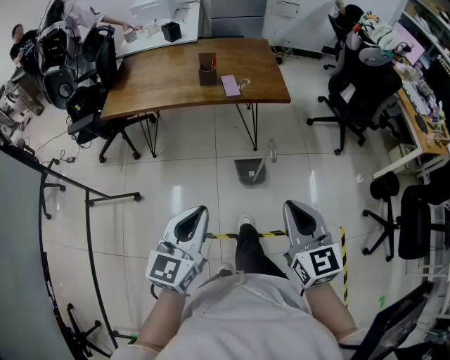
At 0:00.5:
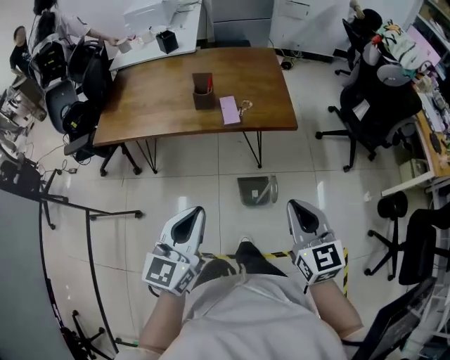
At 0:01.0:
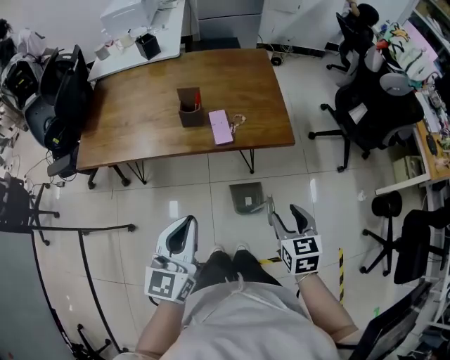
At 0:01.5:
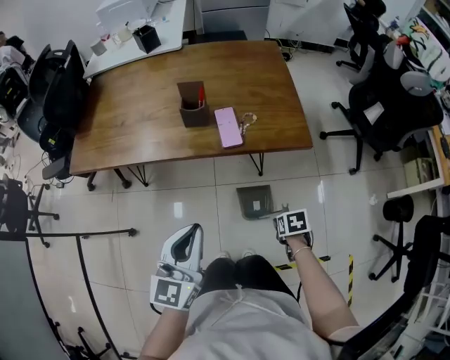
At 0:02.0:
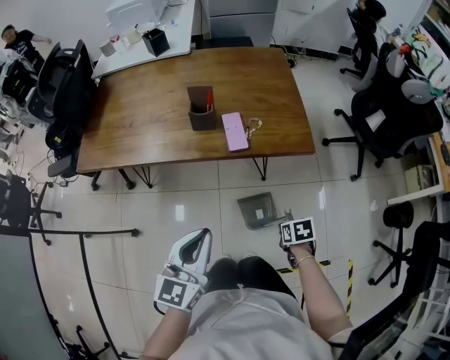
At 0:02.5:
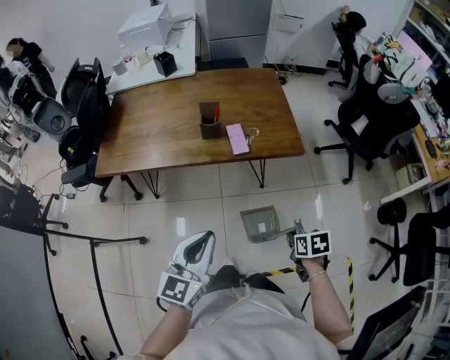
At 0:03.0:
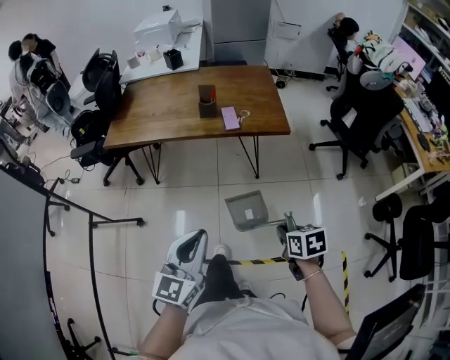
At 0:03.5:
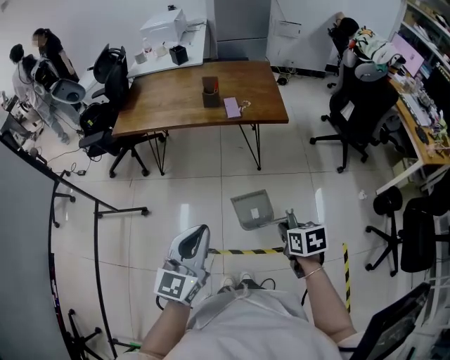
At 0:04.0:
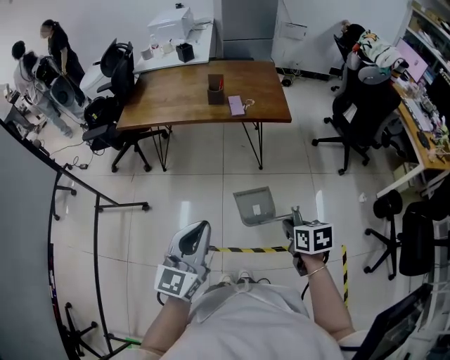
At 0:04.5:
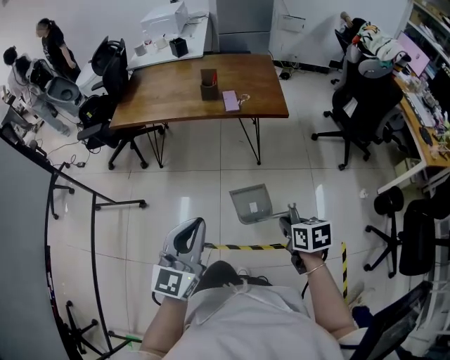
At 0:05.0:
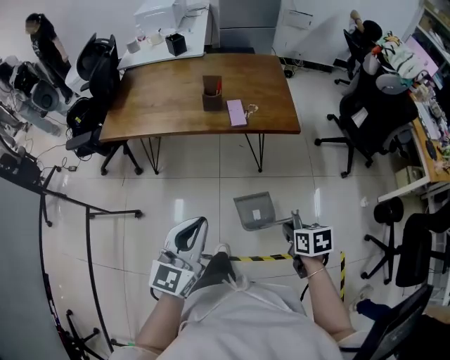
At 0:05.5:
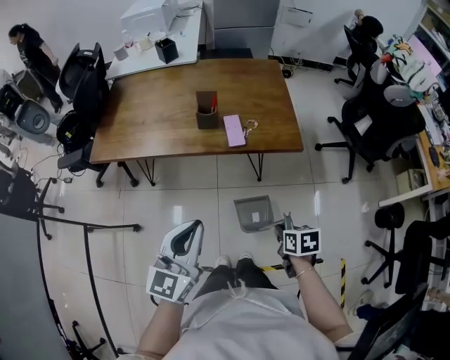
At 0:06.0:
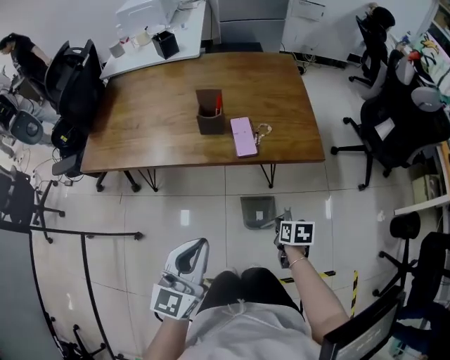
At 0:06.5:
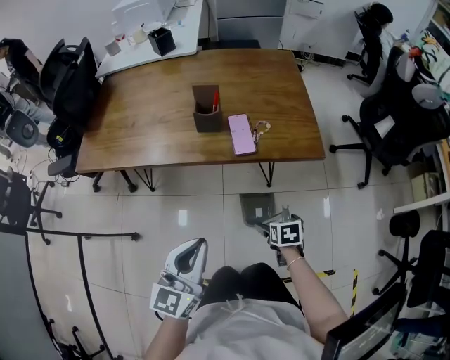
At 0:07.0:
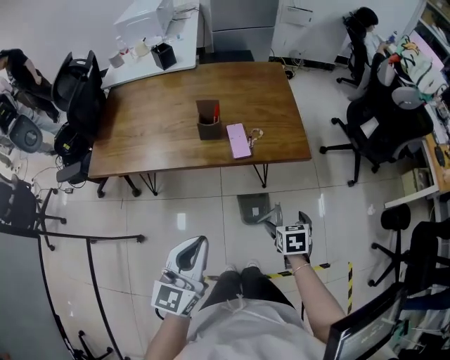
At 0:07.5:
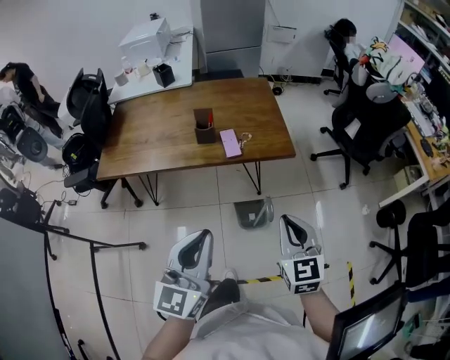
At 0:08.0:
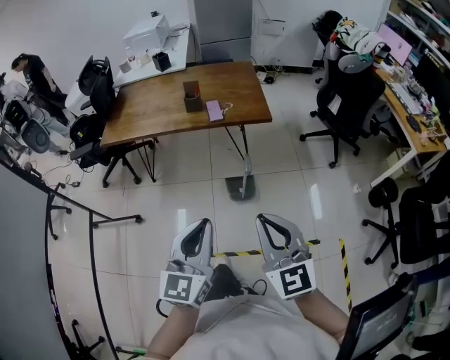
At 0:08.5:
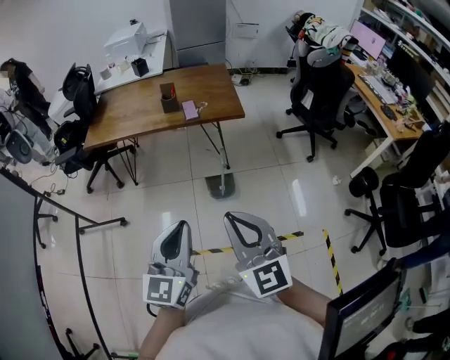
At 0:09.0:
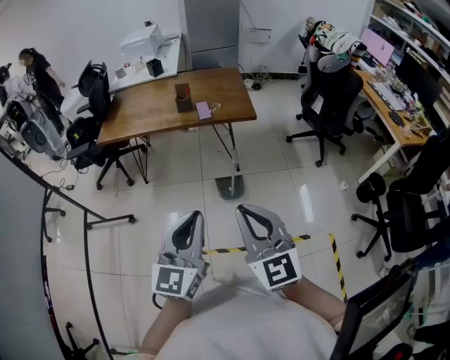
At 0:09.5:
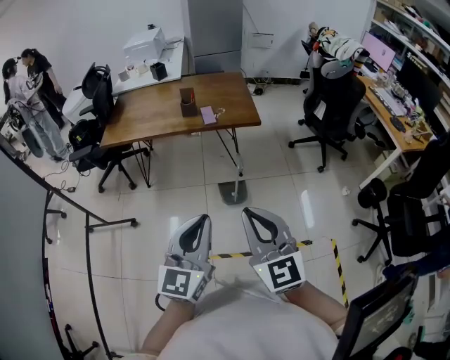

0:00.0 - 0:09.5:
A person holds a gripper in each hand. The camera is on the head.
0:00.0 - 0:02.0: The left gripper moves approximately 30 cm. The right gripper travels downward by some 35 cm, points its fingers roughly 60 degrees further downward, and opens, then closes again.
0:02.0 - 0:04.0: The left gripper moves backward, some 35 cm. Meanwhile the right gripper moves backward and upward, approximately 40 cm, and turns by roughly 20 degrees.
0:04.0 - 0:05.5: The grippers both shift forward by some 25 cm.
0:05.5 - 0:07.5: The left gripper shifts approximately 5 cm upward, while the right gripper moves upward, approximately 20 cm, points its fingers about 40 degrees further upward, and opens and closes again.
0:07.5 - 0:09.5: The two grippers go some 30 cm backward. The right gripper rotates some 20 degrees.

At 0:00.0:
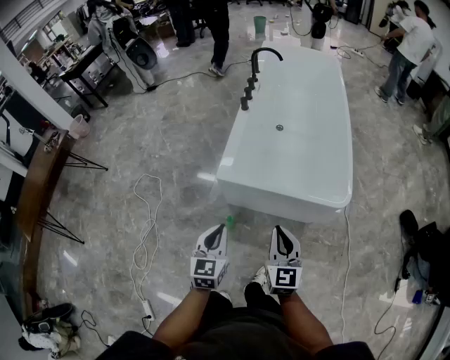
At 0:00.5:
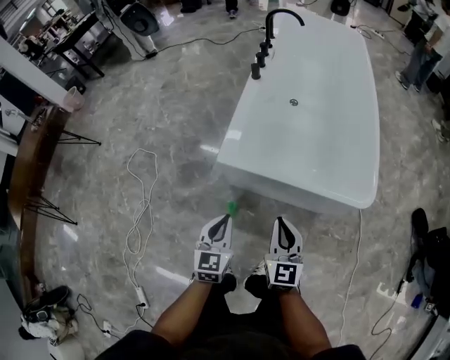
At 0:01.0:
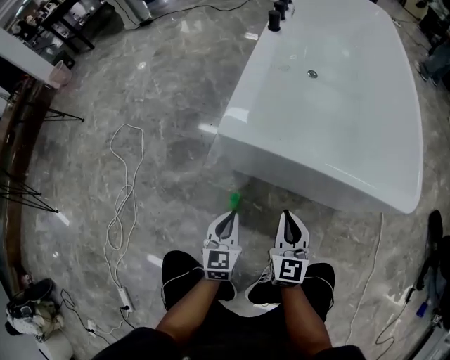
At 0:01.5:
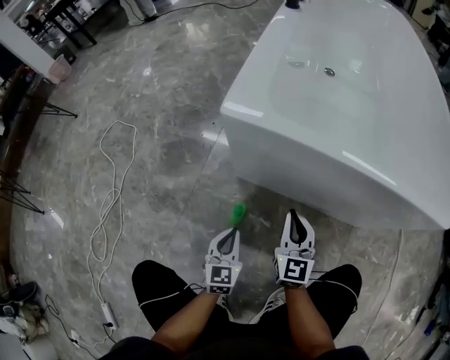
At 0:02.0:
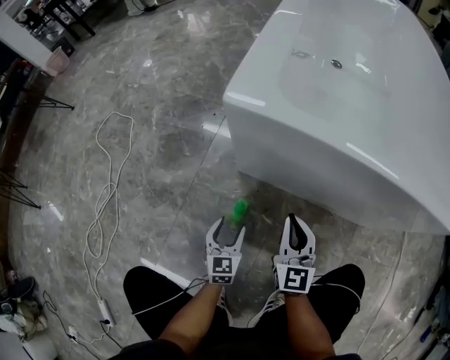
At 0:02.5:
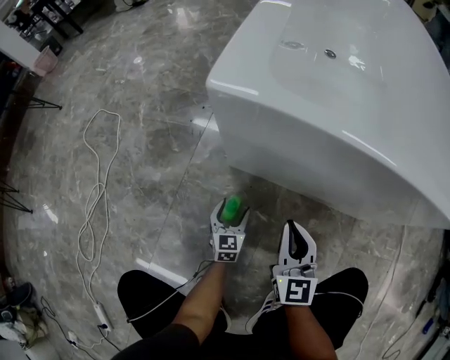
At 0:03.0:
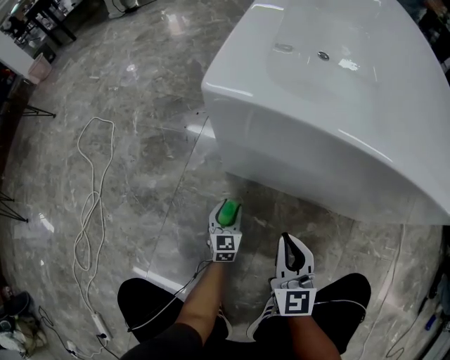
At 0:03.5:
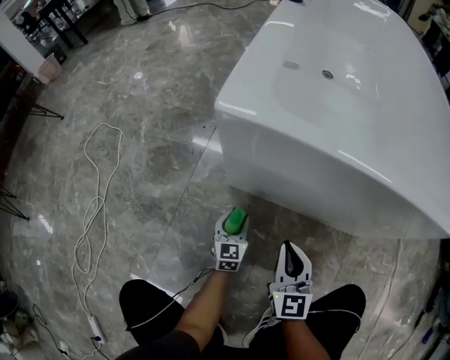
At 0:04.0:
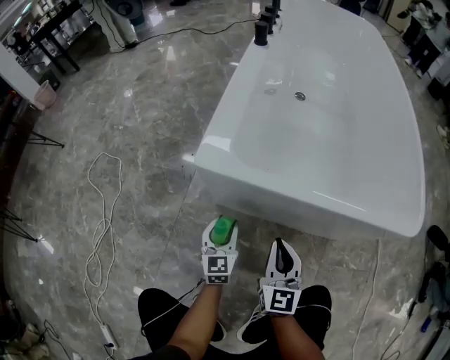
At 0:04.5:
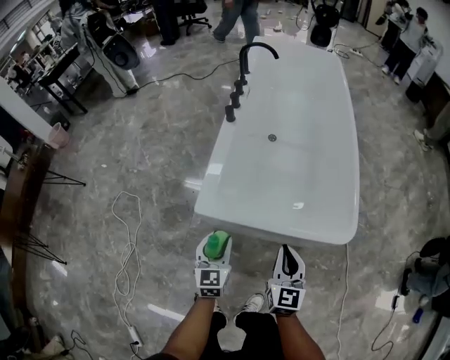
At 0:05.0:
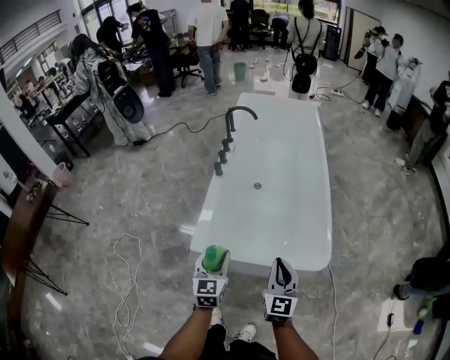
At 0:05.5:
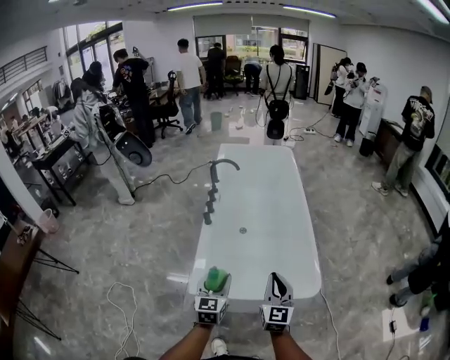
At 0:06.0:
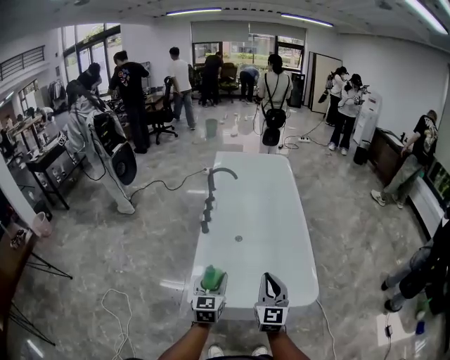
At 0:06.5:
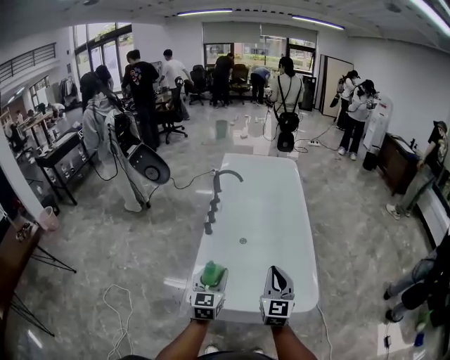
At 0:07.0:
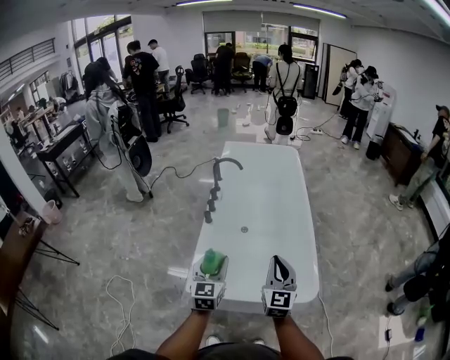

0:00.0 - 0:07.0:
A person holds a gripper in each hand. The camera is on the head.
0:00.0 - 0:02.0: Both grippers move downward, roughly 70 cm. The left gripper opens up.
0:02.0 - 0:03.5: The left gripper goes roughly 10 cm forward and downward.
0:03.5 - 0:05.0: Both grippers move upward, some 70 cm.
0:05.0 - 0:07.0: Both grippers move upward and forward, approximately 15 cm.

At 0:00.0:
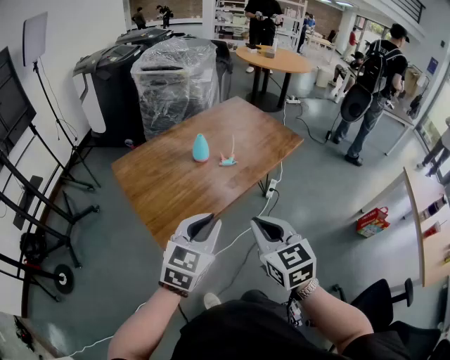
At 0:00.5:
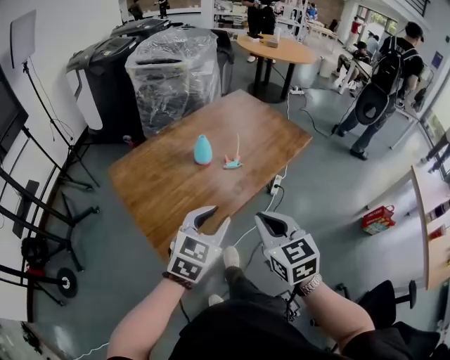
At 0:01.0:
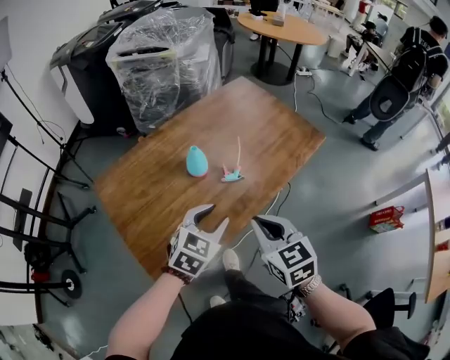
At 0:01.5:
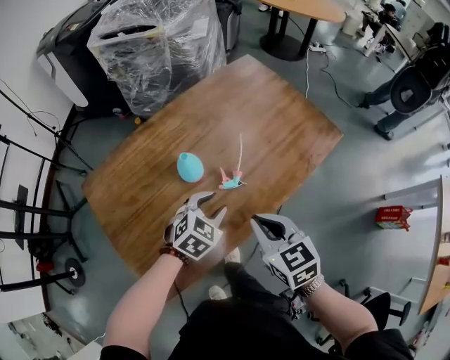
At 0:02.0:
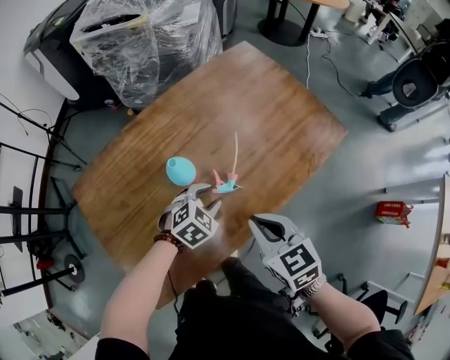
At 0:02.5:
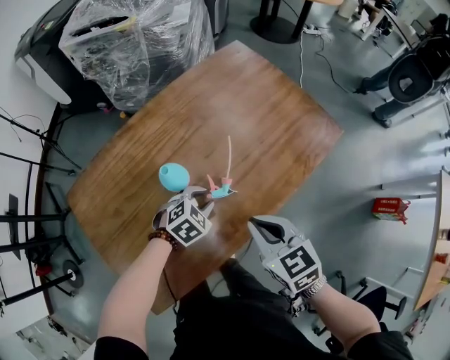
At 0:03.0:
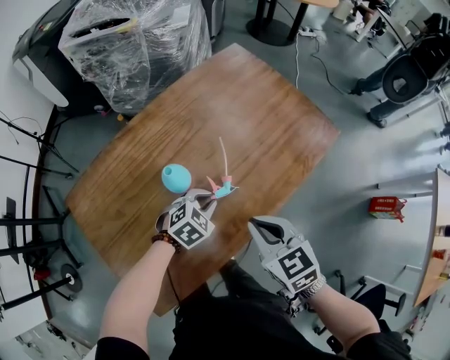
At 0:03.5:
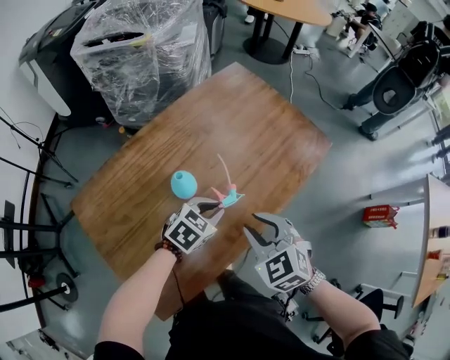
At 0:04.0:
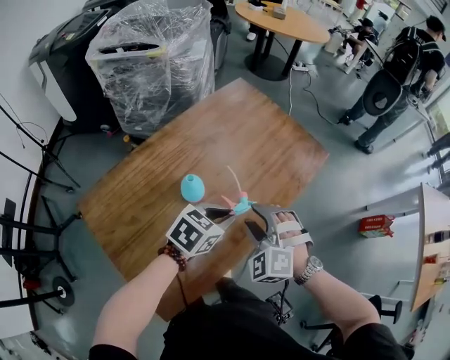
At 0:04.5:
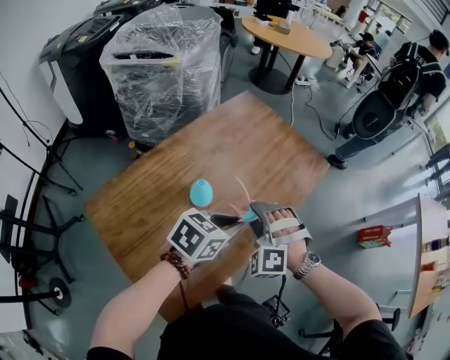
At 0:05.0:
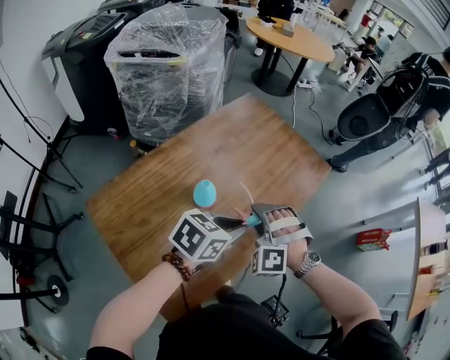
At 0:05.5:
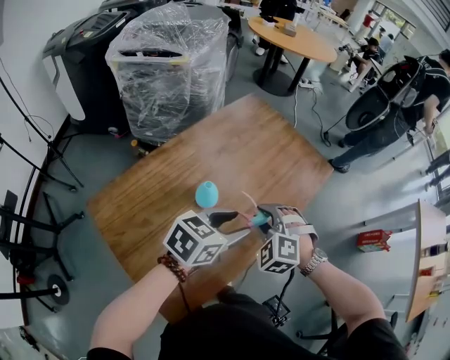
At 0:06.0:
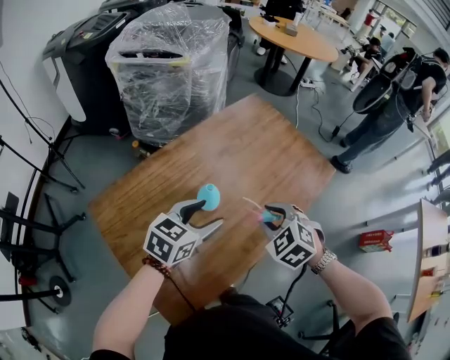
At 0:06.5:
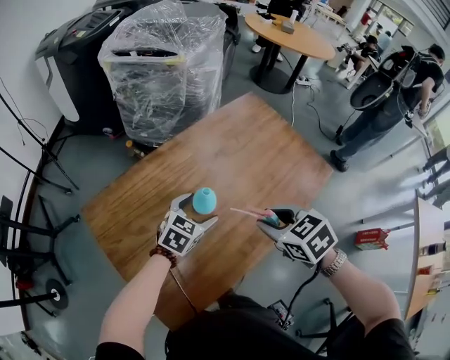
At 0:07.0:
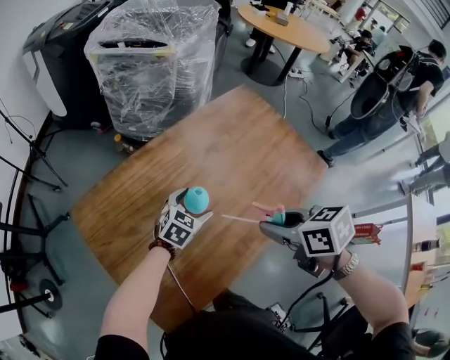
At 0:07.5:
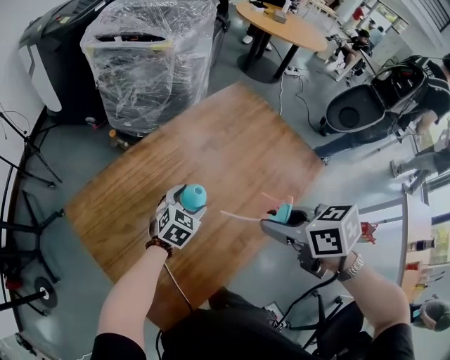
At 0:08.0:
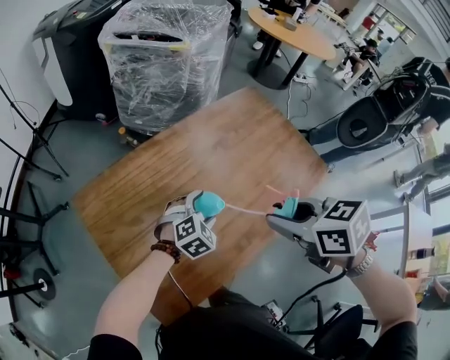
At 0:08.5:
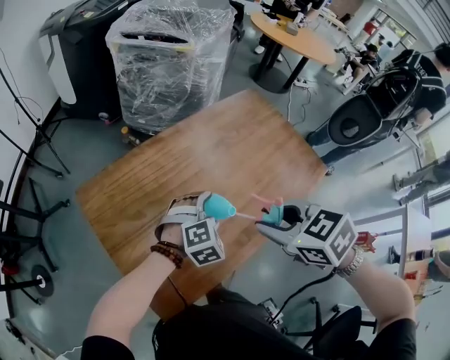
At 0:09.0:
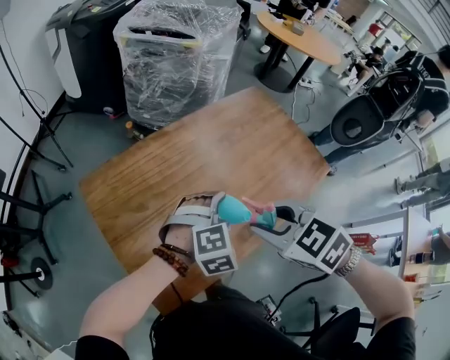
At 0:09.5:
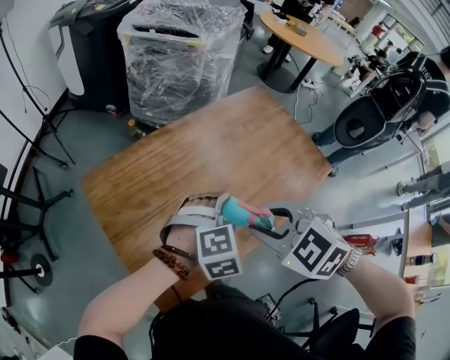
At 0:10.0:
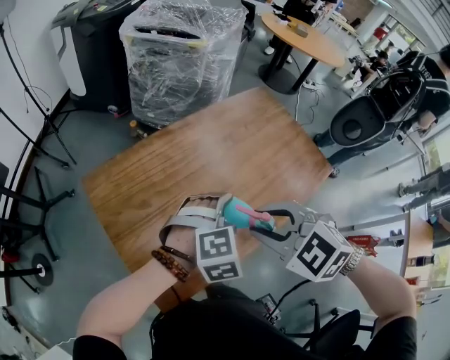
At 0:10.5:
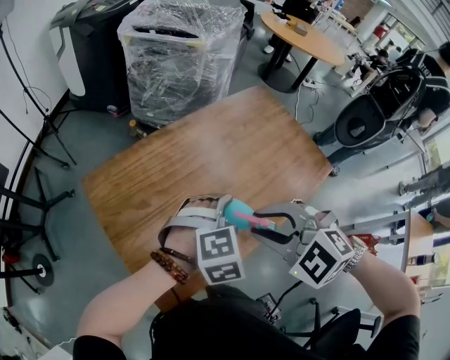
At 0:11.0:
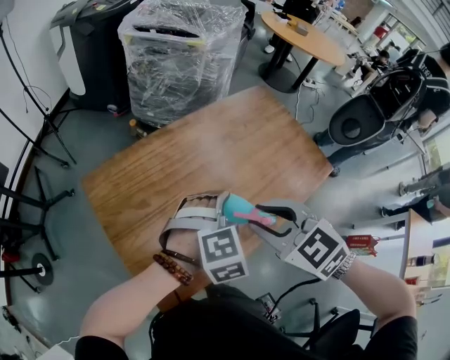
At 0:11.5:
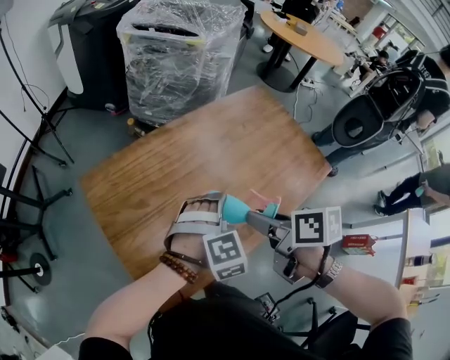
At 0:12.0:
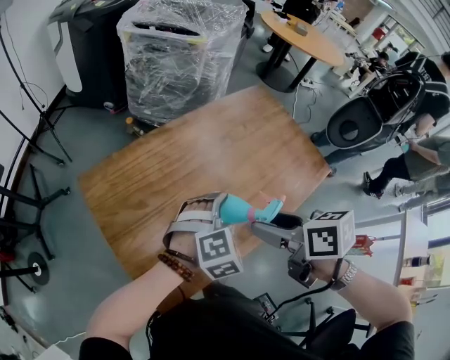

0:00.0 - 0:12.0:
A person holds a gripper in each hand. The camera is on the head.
0:00.0 - 0:02.0: Both grippers move forward and downward, roughly 40 cm. The right gripper changes its angle by about 20 degrees; the left gripper points its fingers some 40 degrees further downward.
0:02.0 - 0:04.0: The left gripper goes some 15 cm upward, and turns by roughly 30 degrees. Meanwhile the right gripper rolls counterclockwise, seen from behind, by about 60 degrees, and opens its fingers.
0:04.0 - 0:06.0: The right gripper turns by roughly 30 degrees. Meanwhile the left gripper goes some 10 cm to the left, and opens its fingers.
0:06.0 - 0:08.0: The left gripper heads downward, covering about 10 cm, and rotates about 40 degrees, while the right gripper travels upward by roughly 10 cm, and swivels about 40 degrees.
0:08.0 - 0:10.0: The right gripper moves to the left and backward, approximately 10 cm, and rolls counterclockwise, seen from behind, by roughly 50 degrees; the left gripper is displaced upward and backward by about 15 cm.
0:10.0 - 0:12.0: The right gripper rolls clockwise, seen from behind, by some 70 degrees, and opens up.
